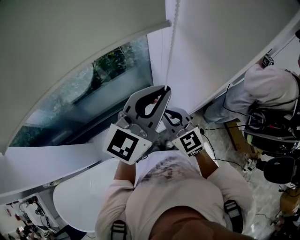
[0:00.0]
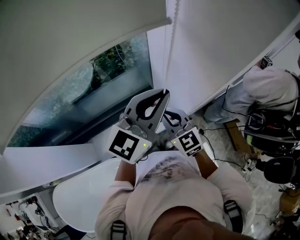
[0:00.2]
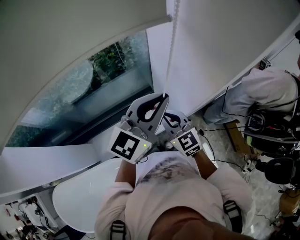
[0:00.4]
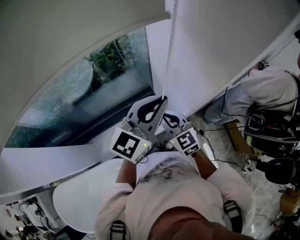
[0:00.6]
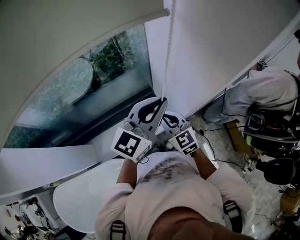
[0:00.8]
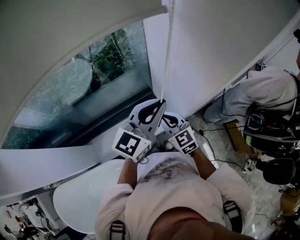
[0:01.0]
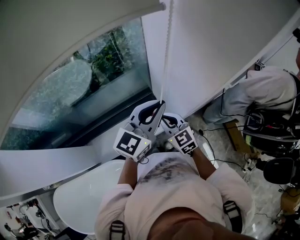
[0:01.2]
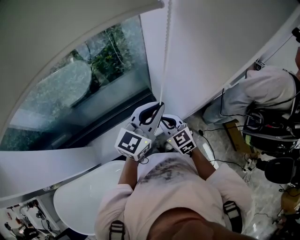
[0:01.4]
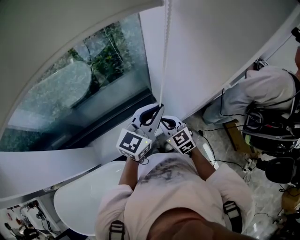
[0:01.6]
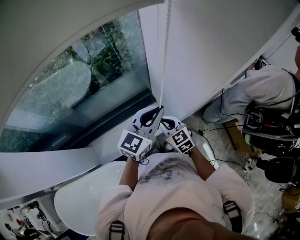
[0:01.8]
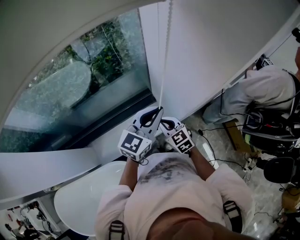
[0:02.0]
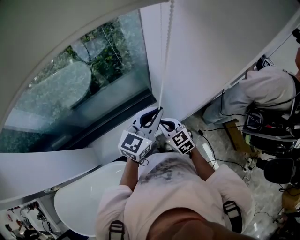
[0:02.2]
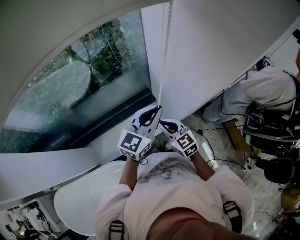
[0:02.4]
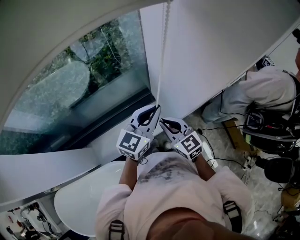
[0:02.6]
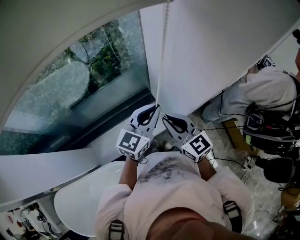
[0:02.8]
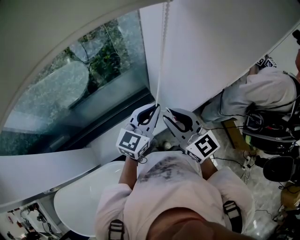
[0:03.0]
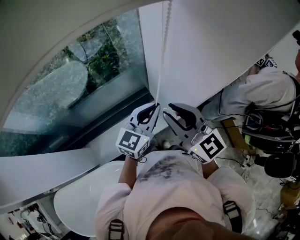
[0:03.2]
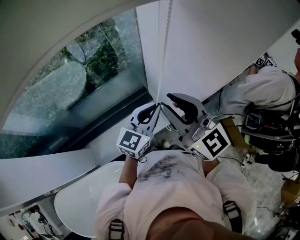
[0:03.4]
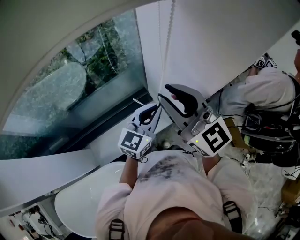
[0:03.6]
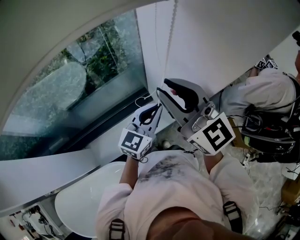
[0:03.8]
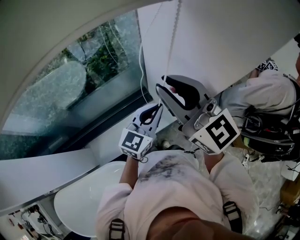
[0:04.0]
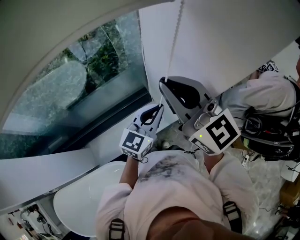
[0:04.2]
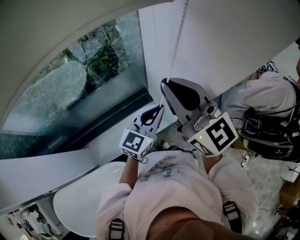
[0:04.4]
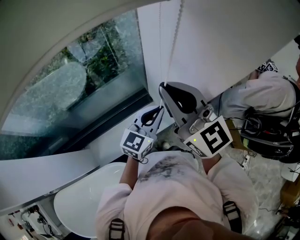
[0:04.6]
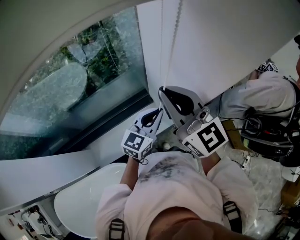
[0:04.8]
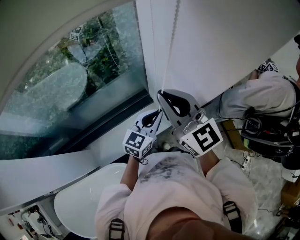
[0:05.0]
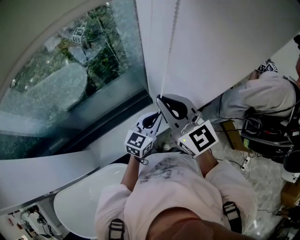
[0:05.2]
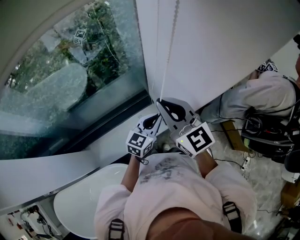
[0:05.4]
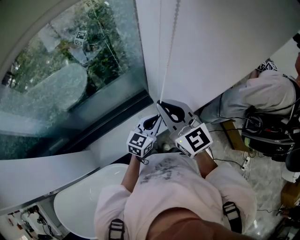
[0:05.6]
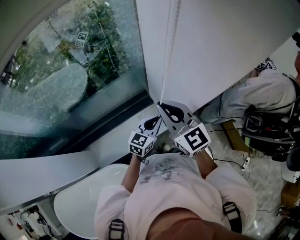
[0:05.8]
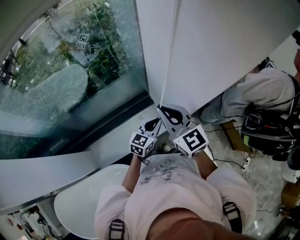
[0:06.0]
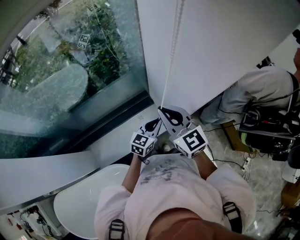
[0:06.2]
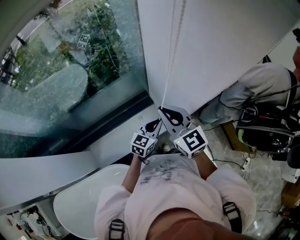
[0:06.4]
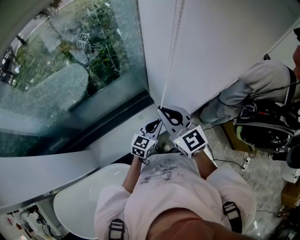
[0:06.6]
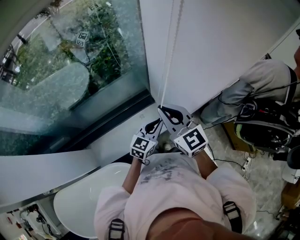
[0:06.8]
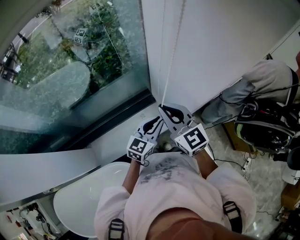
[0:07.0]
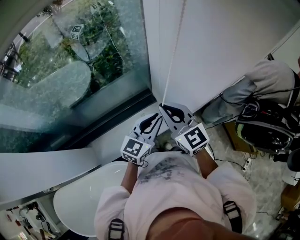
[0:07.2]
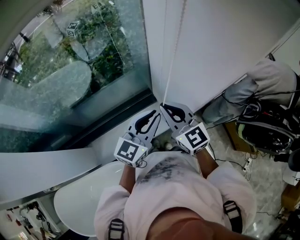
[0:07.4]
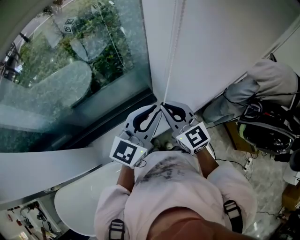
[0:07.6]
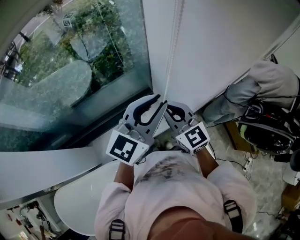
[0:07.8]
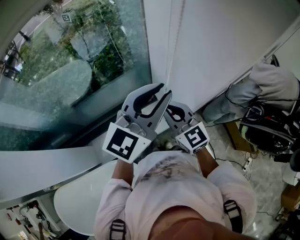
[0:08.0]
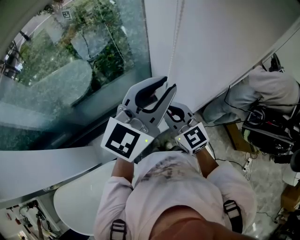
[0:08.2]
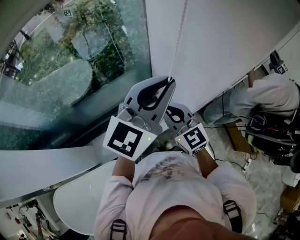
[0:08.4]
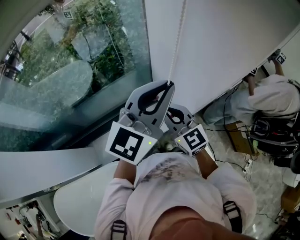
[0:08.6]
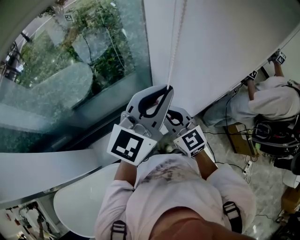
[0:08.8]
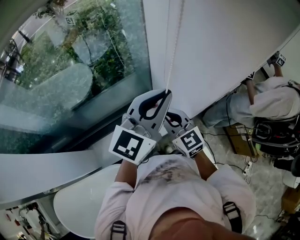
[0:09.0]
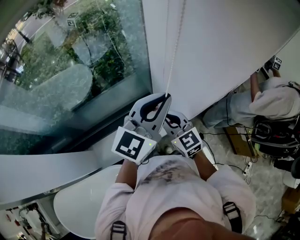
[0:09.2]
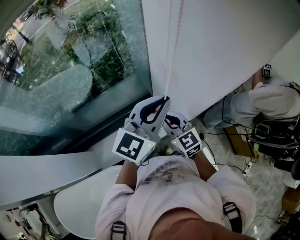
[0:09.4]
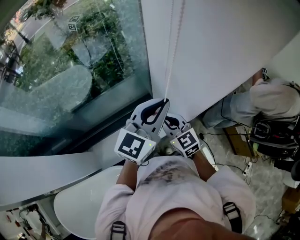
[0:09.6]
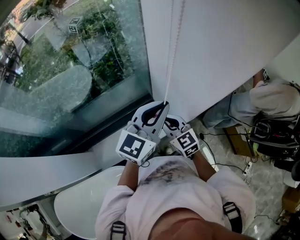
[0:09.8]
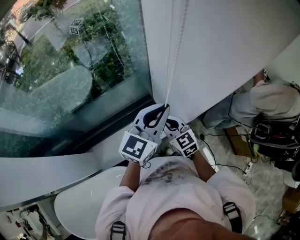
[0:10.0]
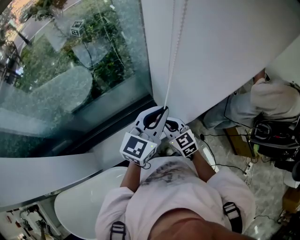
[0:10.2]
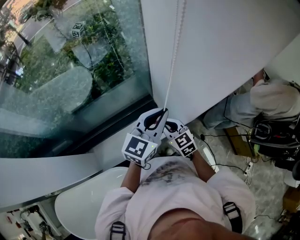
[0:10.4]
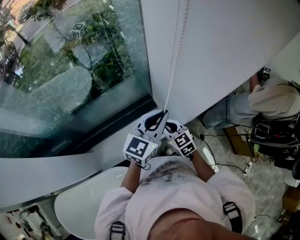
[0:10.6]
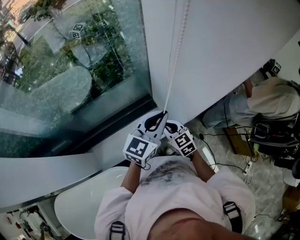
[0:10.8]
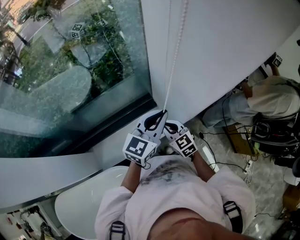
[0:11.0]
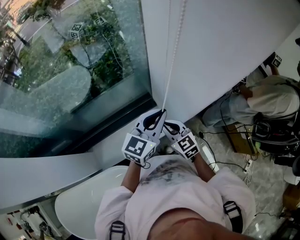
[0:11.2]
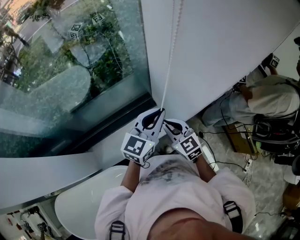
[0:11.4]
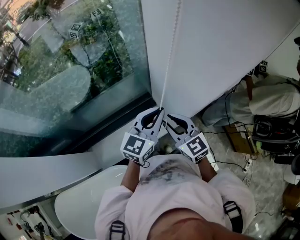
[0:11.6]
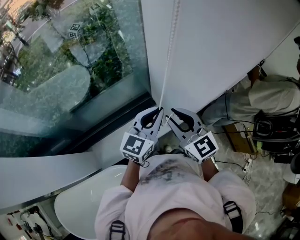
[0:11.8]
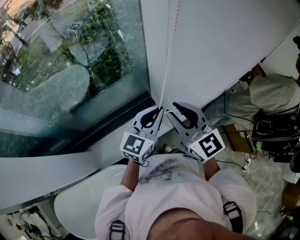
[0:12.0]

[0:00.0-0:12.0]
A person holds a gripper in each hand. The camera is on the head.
0:00.0 to 0:01.6: Both grippers move downward, some 10 cm.
0:01.6 to 0:03.0: The right gripper moves upward, some 15 cm.
0:03.0 to 0:04.4: The right gripper goes about 15 cm upward and forward.
0:04.4 to 0:06.0: Both grippers travel together downward, roughly 15 cm.
0:06.0 to 0:07.6: The left gripper is displaced upward by approximately 25 cm, and changes its angle by approximately 20 degrees.
0:07.6 to 0:09.0: The left gripper shifts approximately 10 cm upward and forward.
0:09.0 to 0:10.4: The grippers both shift downward by about 10 cm.
0:10.4 to 0:12.0: The right gripper travels upward by about 20 cm, turns by approximately 20 degrees, and opens its fingers.

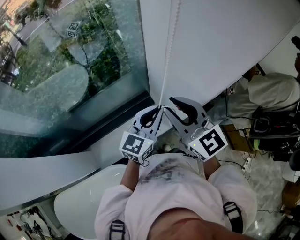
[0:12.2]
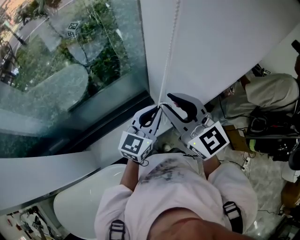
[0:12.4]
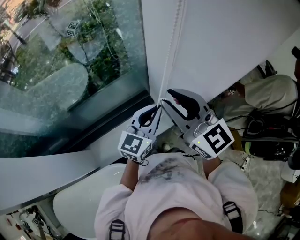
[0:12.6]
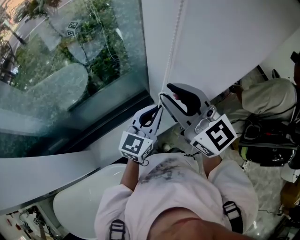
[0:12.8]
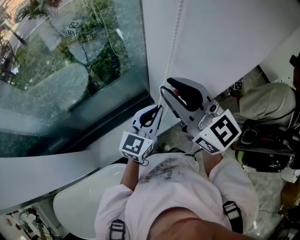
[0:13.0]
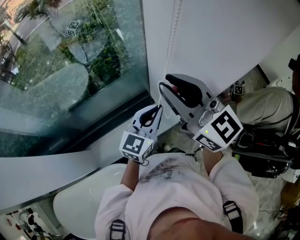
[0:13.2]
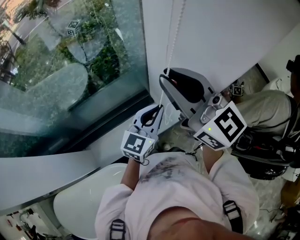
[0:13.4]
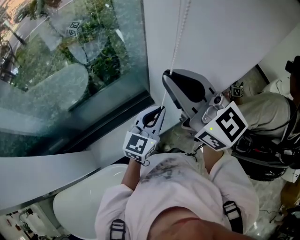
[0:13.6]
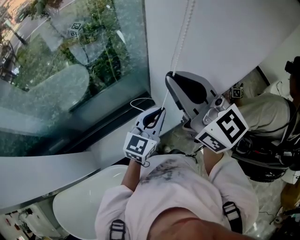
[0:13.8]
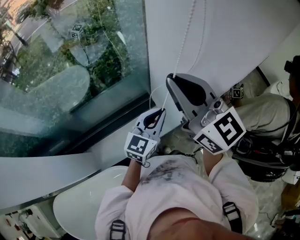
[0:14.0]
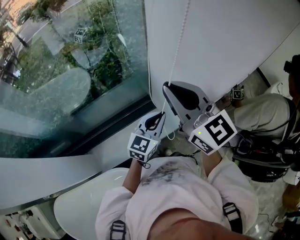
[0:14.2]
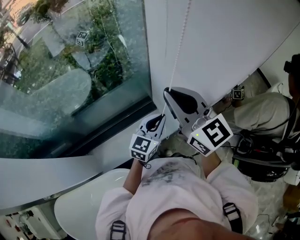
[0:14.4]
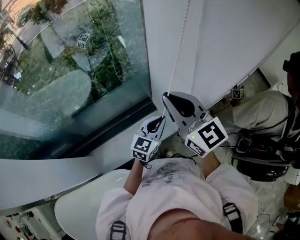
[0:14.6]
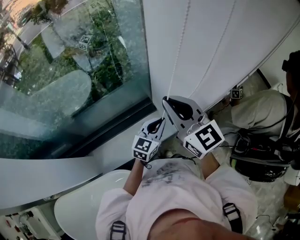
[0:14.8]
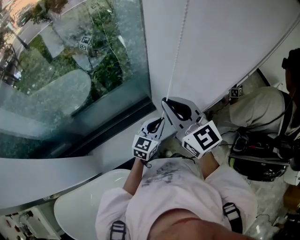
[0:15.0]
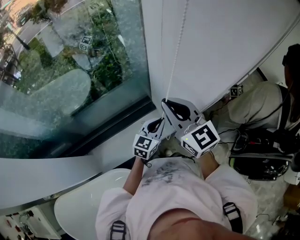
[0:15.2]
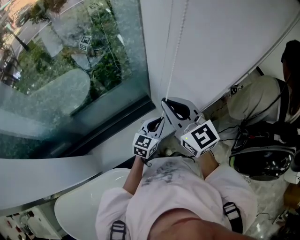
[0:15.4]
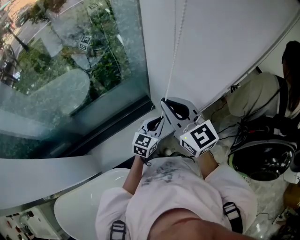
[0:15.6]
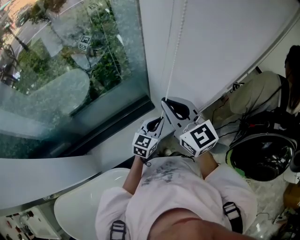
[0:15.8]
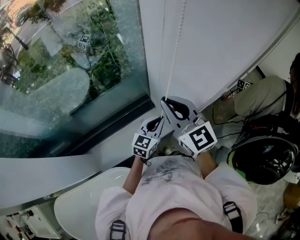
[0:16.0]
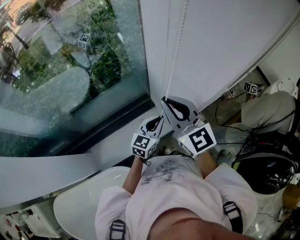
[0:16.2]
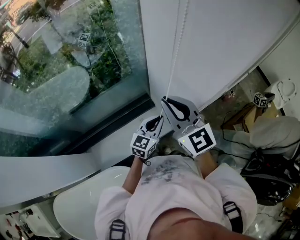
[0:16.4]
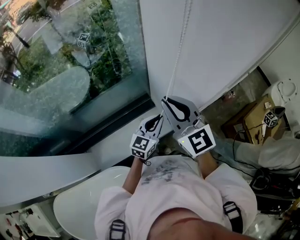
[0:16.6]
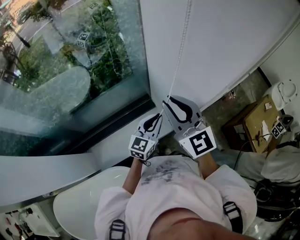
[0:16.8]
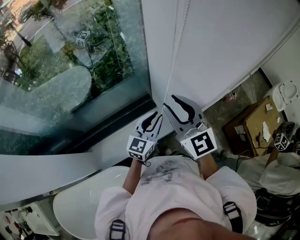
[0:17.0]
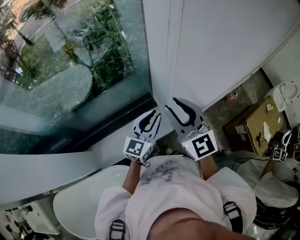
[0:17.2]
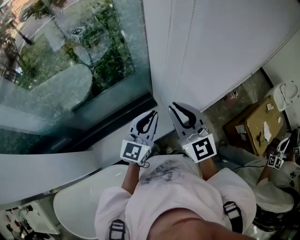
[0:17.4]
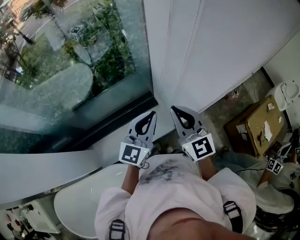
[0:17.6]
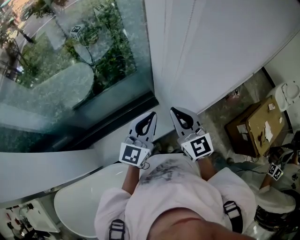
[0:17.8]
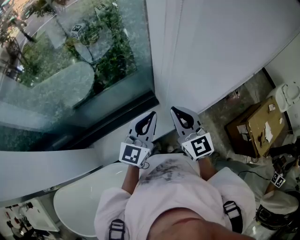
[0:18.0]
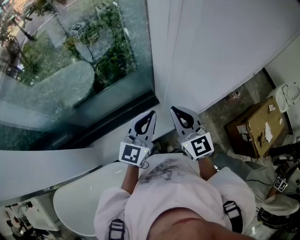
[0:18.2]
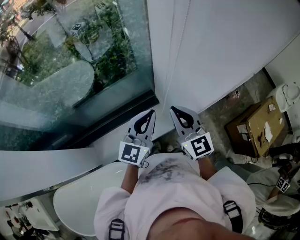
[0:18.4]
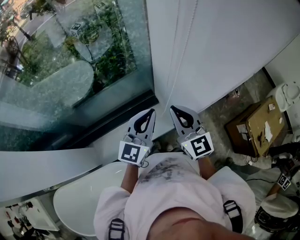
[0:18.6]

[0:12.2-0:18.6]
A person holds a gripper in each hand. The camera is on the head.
0:12.2 to 0:13.8: The right gripper goes approximately 10 cm upward, and closes.
0:13.8 to 0:15.4: Both grippers travel together downward, approximately 10 cm.
0:15.4 to 0:17.0: The left gripper moves upward, some 5 cm. Meanwhile the right gripper opens.
0:17.0 to 0:18.6: The right gripper heads downward, covering approximately 5 cm, and closes up. Meanwhile the left gripper heads upward, covering approximately 10 cm.

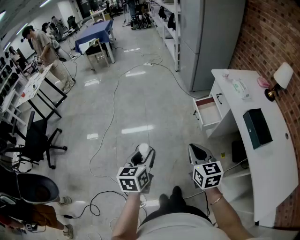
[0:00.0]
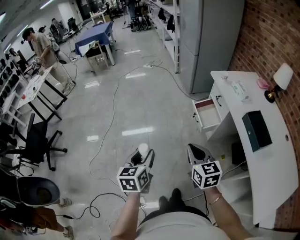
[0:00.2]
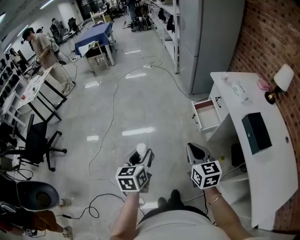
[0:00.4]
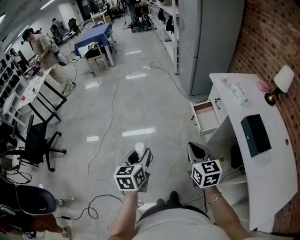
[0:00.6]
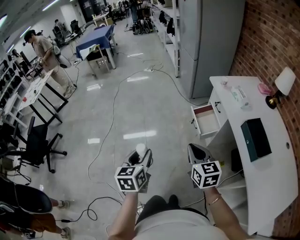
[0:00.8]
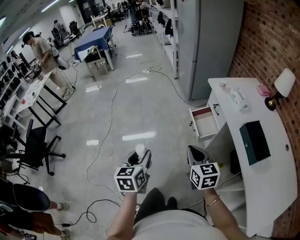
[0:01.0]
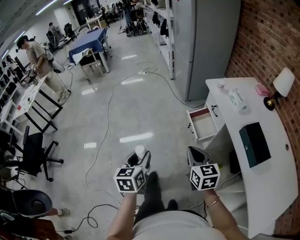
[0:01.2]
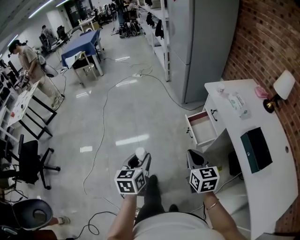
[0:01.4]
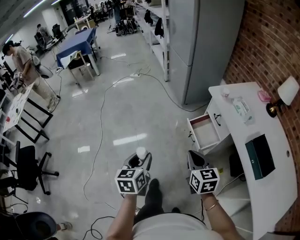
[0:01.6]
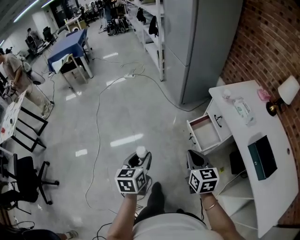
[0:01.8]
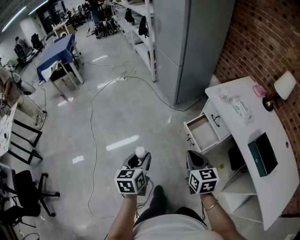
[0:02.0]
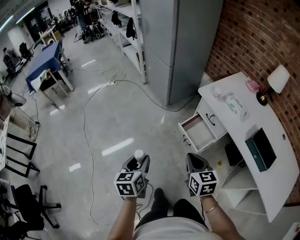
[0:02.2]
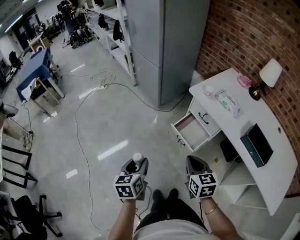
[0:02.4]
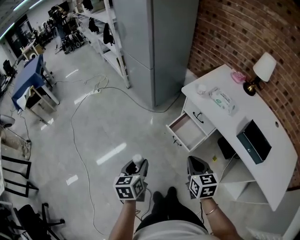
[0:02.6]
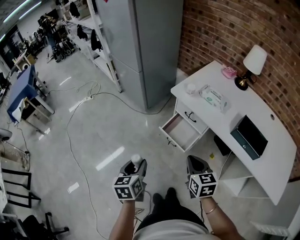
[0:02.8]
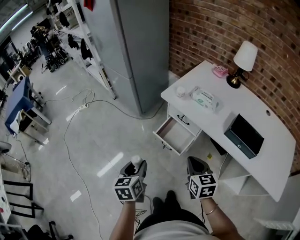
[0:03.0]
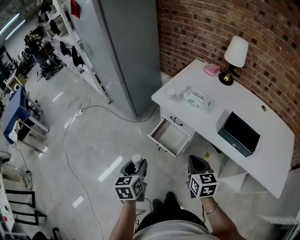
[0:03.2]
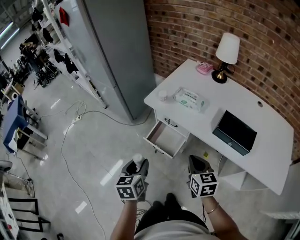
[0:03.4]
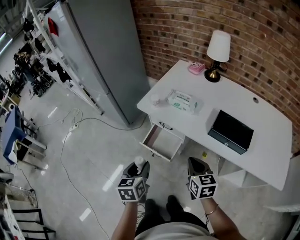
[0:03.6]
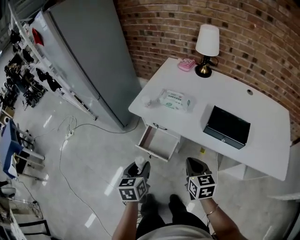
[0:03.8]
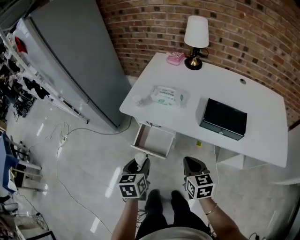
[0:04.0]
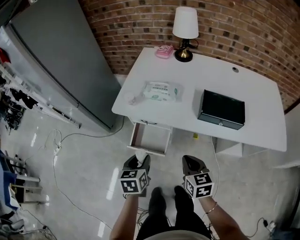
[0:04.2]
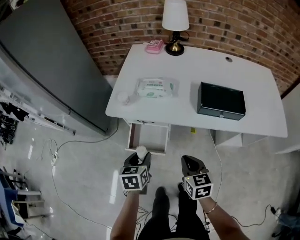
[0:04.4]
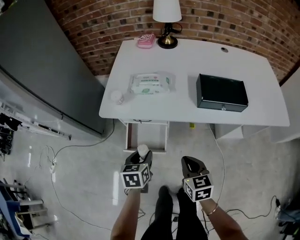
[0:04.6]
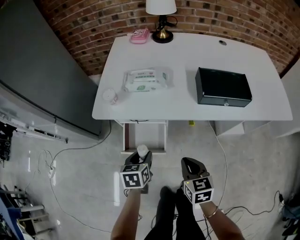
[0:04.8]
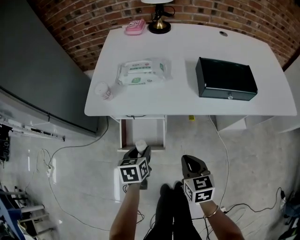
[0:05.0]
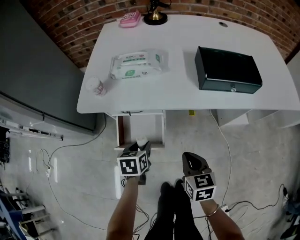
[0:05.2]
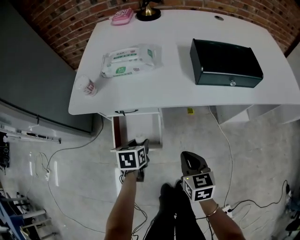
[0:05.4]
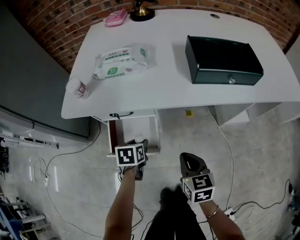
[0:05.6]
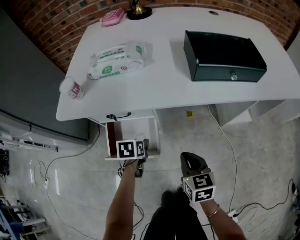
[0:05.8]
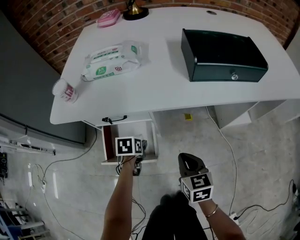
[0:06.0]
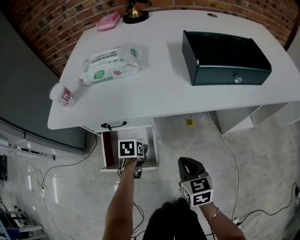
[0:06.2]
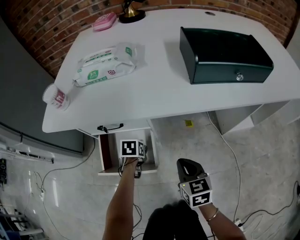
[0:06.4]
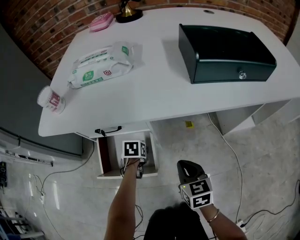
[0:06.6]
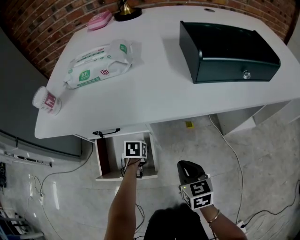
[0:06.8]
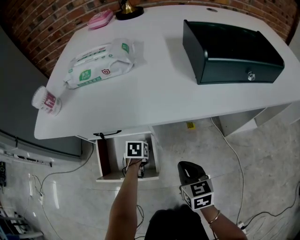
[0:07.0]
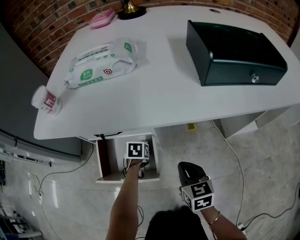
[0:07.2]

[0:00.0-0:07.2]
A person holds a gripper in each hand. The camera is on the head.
0:00.0 to 0:01.4: The right gripper shifts about 20 cm forward and to the right. Meanwhile the left gripper shifts some 20 cm forward.
0:01.4 to 0:02.8: The right gripper changes place by some 15 cm, and changes its angle by roughly 30 degrees. Meanwhile the left gripper changes place by about 25 cm, and changes its angle by some 30 degrees.
0:02.8 to 0:04.4: The left gripper shifts by about 30 cm, and swivels roughly 40 degrees. Meanwhile the right gripper ends up about 15 cm from where it was, and swivels roughly 30 degrees.
0:04.4 to 0:05.8: Both grippers move downward, some 30 cm. The left gripper swivels some 30 degrees.
0:05.8 to 0:07.2: The right gripper moves downward and forward, roughly 10 cm; the left gripper heads downward and forward, covering some 20 cm.
